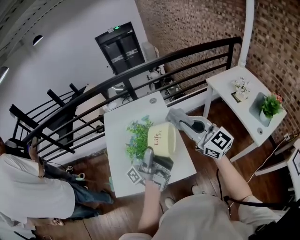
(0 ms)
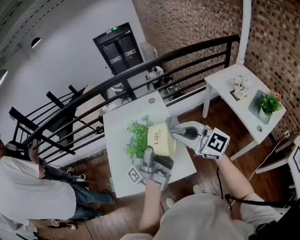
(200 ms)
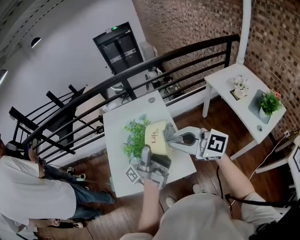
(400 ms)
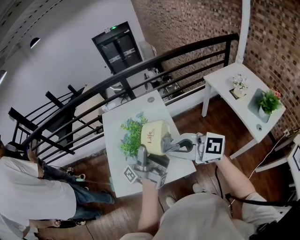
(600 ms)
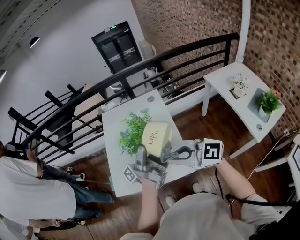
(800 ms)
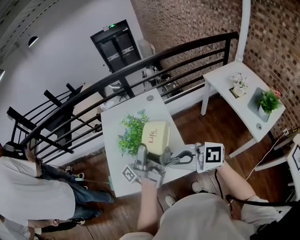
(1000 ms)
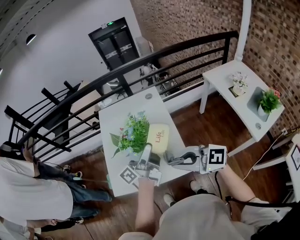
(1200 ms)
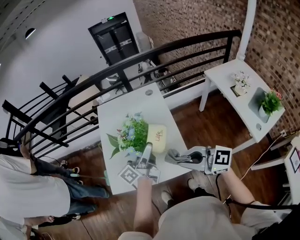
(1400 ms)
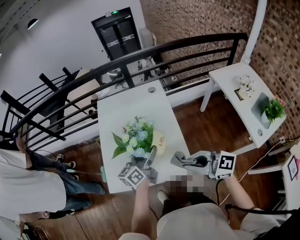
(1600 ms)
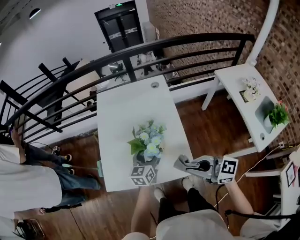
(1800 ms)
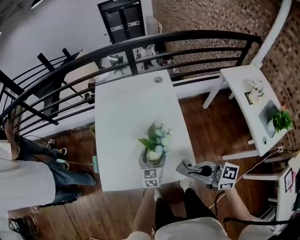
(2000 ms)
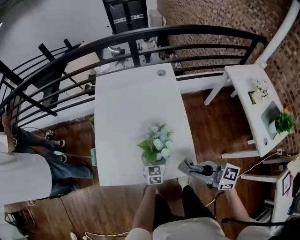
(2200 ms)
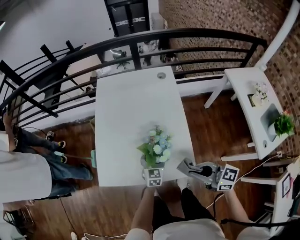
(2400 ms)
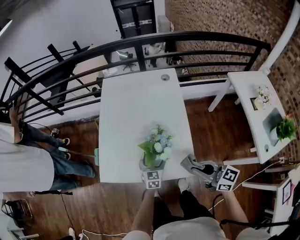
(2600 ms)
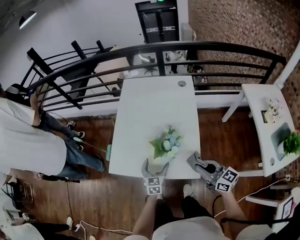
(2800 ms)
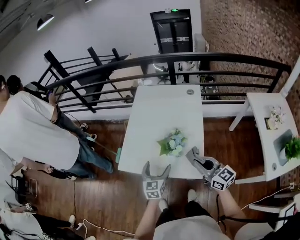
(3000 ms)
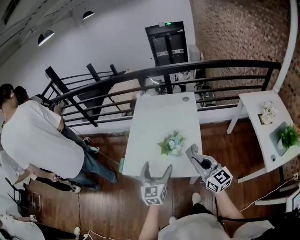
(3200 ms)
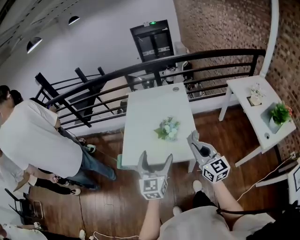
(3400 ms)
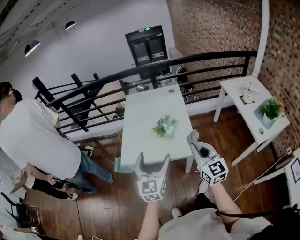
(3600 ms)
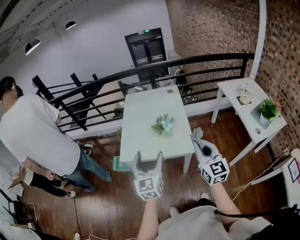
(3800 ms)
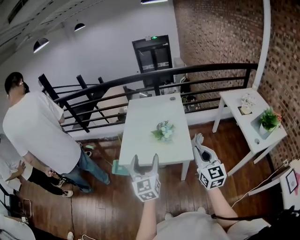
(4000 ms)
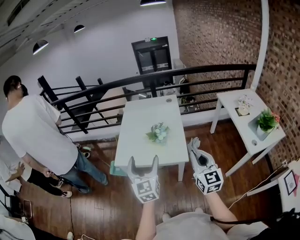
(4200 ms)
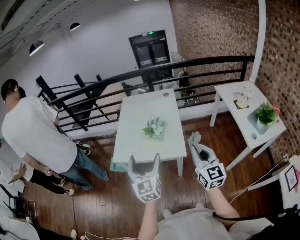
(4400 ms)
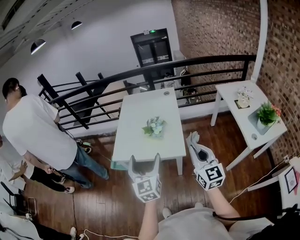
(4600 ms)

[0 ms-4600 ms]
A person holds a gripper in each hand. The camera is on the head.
0 ms to 1600 ms: The right gripper travels downward, backward and to the left by roughly 20 cm, and changes its angle by about 40 degrees. The left gripper travels downward and forward by approximately 15 cm, and tips its fingers downward by some 40 degrees.
1600 ms to 3000 ms: The left gripper goes approximately 15 cm backward, downward and to the left, and swivels about 50 degrees. The right gripper travels downward by about 5 cm.
3000 ms to 4600 ms: The left gripper heads upward and backward, covering some 30 cm, while the right gripper goes approximately 20 cm backward and upward, and rotates about 40 degrees.

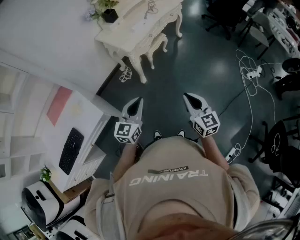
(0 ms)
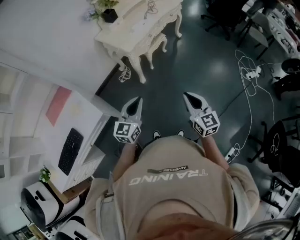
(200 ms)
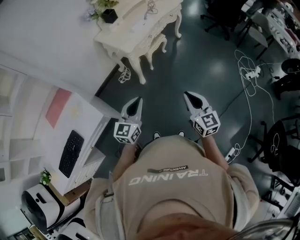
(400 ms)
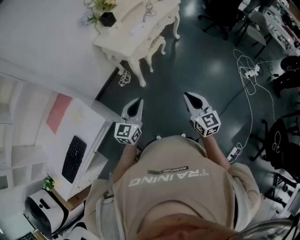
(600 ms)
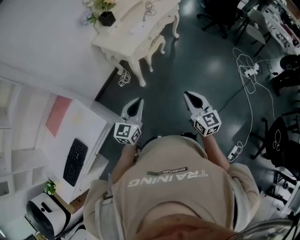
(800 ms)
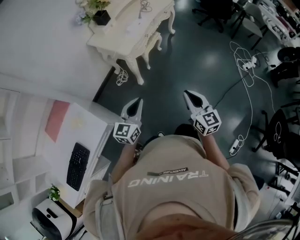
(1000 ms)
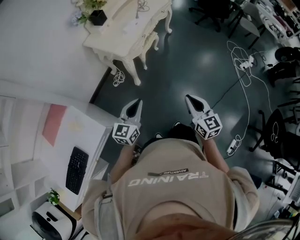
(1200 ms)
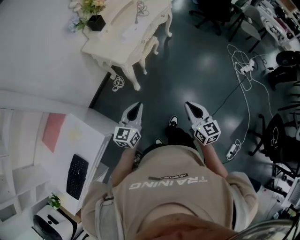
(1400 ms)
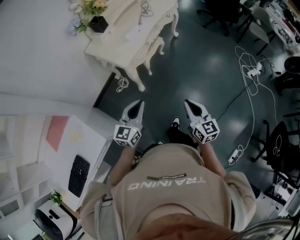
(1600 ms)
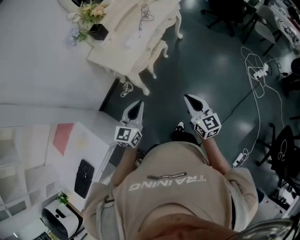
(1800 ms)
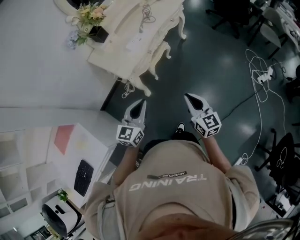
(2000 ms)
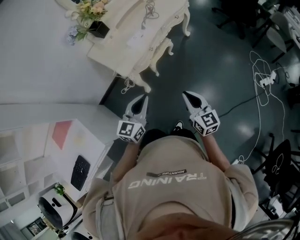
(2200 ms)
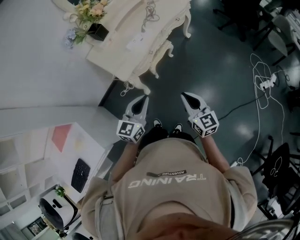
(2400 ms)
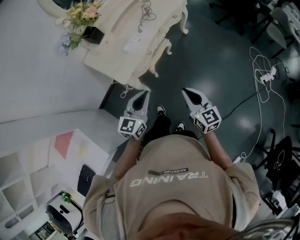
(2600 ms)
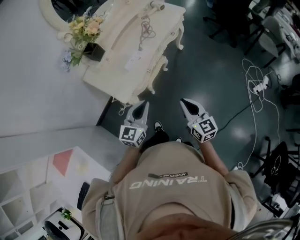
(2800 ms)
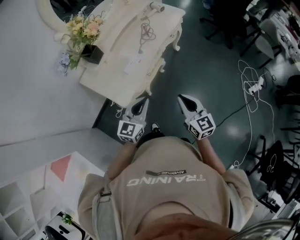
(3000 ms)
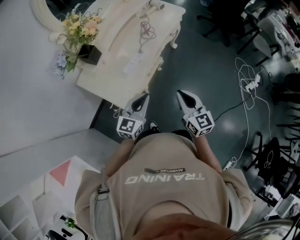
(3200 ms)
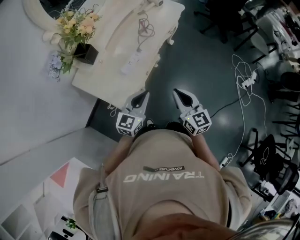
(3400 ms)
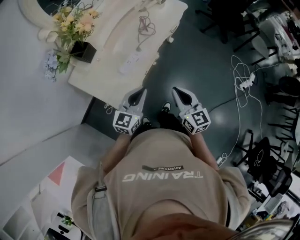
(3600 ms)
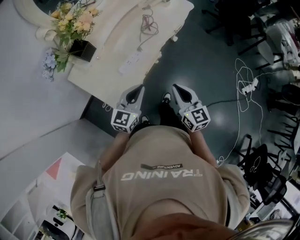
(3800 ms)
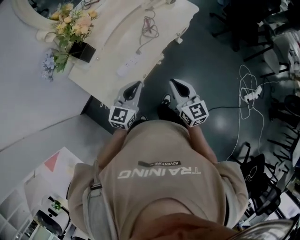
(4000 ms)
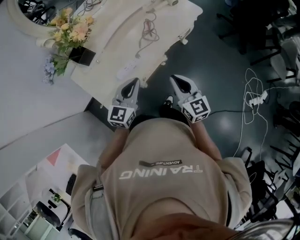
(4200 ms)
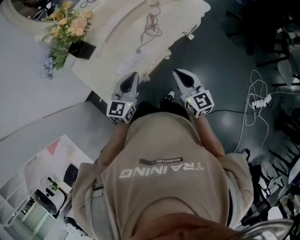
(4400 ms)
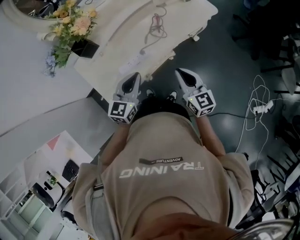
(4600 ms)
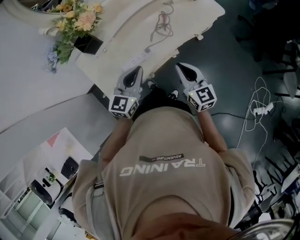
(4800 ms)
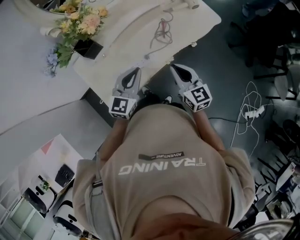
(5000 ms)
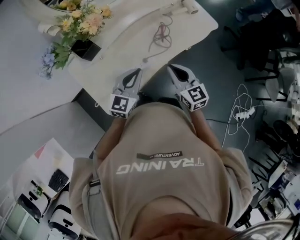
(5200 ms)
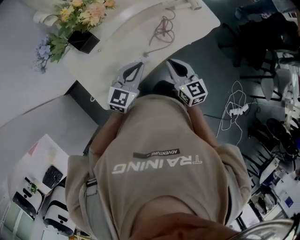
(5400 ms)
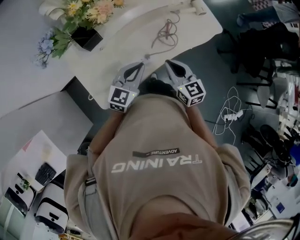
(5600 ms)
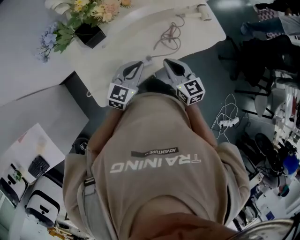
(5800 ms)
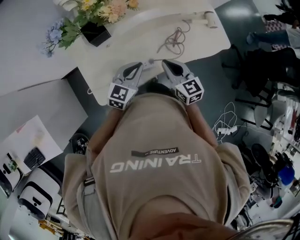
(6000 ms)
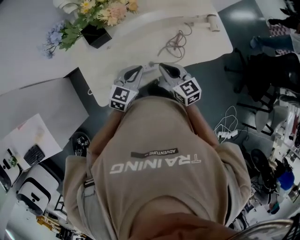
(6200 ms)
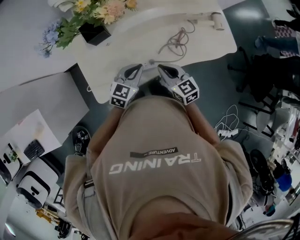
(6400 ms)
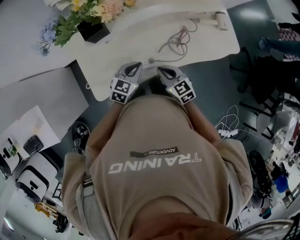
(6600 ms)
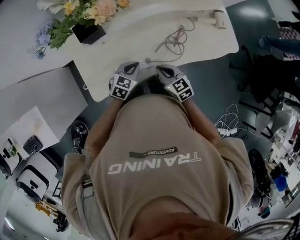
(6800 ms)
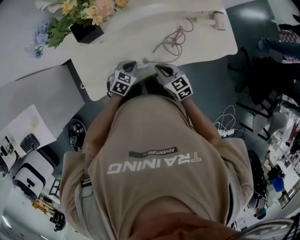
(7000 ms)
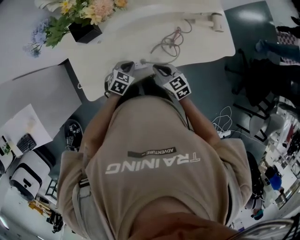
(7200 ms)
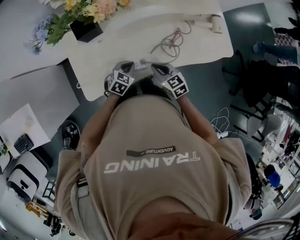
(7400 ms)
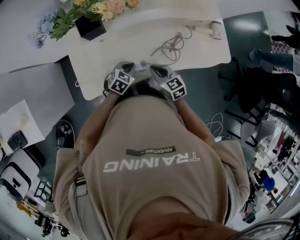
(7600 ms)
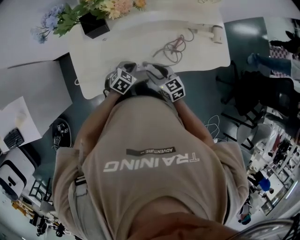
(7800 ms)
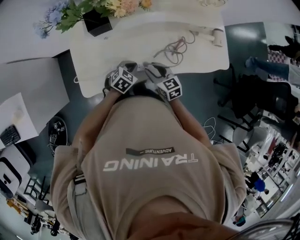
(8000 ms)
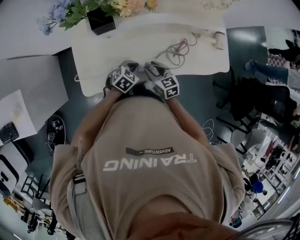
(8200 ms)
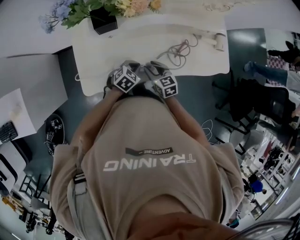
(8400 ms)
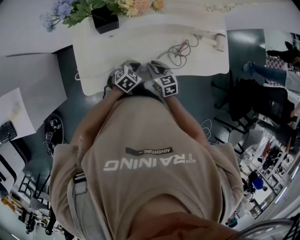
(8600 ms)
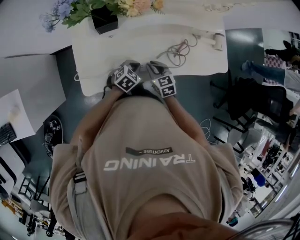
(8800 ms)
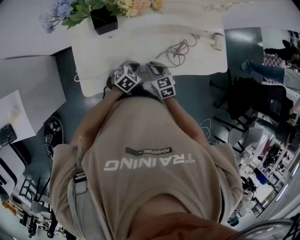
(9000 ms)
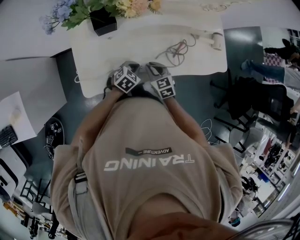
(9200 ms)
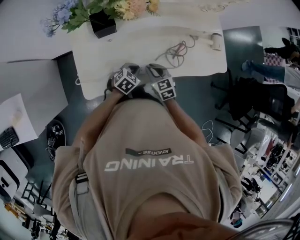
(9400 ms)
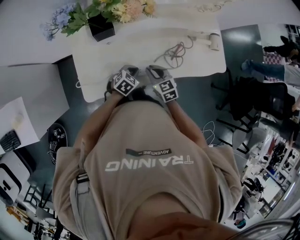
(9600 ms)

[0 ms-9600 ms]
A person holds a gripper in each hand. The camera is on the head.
0 ms to 1600 ms: Both grippers move forward, approximately 20 cm.
1600 ms to 3200 ms: Both grippers move forward, approximately 40 cm.
3200 ms to 4800 ms: The right gripper moves about 30 cm, and changes its angle by about 20 degrees. Meanwhile the left gripper changes place by about 25 cm, and changes its angle by some 20 degrees.
4800 ms to 6400 ms: The right gripper shifts some 20 cm forward, to the left and downward, and changes its angle by approximately 30 degrees. The left gripper travels downward and forward by some 15 cm.
6400 ms to 8000 ms: The two grippers go approximately 10 cm downward. The right gripper opens; the left gripper changes its angle by roughly 20 degrees.
8000 ms to 9600 ms: The right gripper closes.

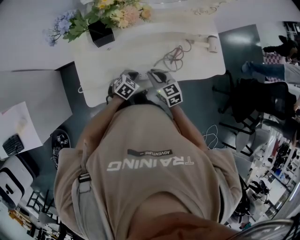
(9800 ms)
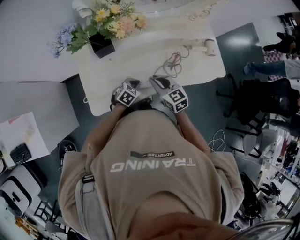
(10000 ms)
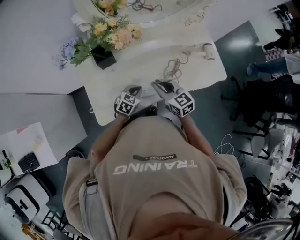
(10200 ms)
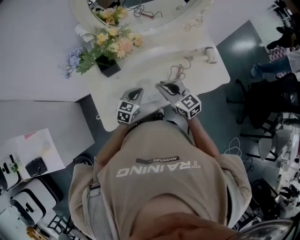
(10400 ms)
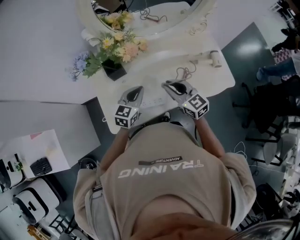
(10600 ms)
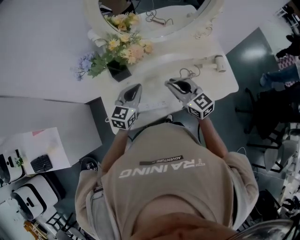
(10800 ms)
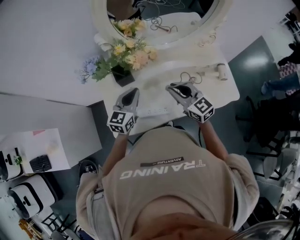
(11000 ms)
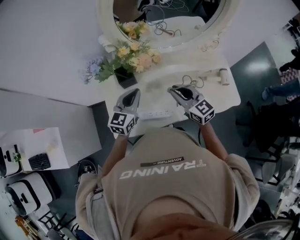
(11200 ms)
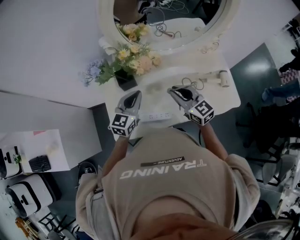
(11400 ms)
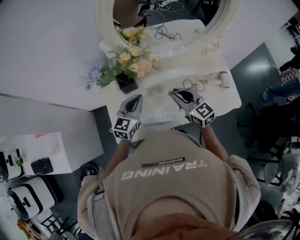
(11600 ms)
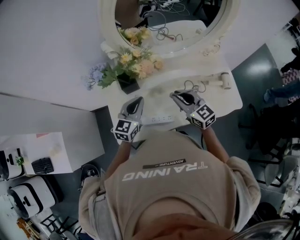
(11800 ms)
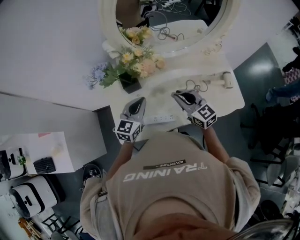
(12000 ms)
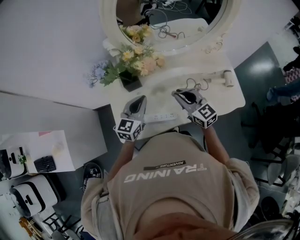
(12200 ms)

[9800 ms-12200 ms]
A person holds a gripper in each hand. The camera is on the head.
9800 ms to 11000 ms: Both grippers travel together upward, roughly 20 cm. The left gripper tilts its fingers approximately 40 degrees upward; the right gripper rotates roughly 20 degrees.
11000 ms to 12200 ms: There are only small adjustments of the grippers.

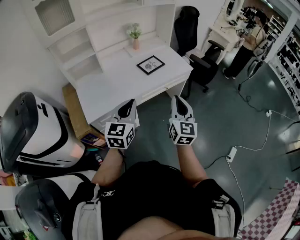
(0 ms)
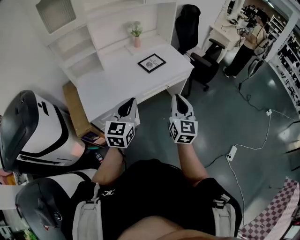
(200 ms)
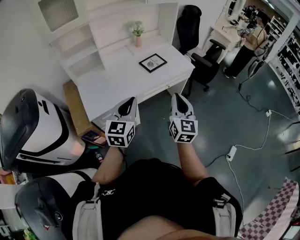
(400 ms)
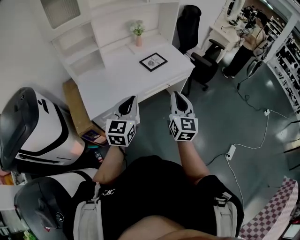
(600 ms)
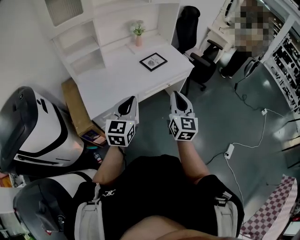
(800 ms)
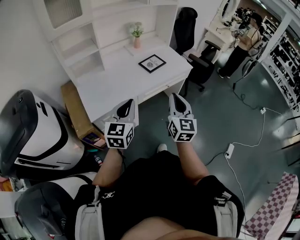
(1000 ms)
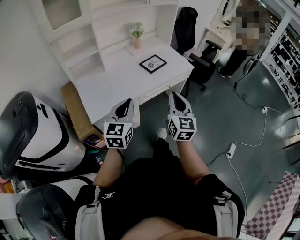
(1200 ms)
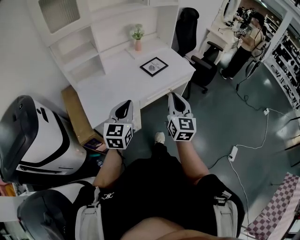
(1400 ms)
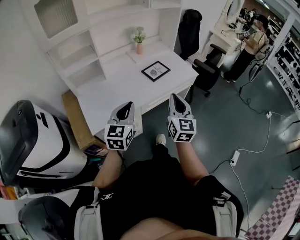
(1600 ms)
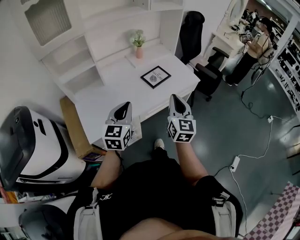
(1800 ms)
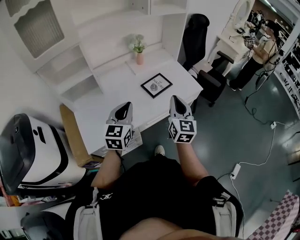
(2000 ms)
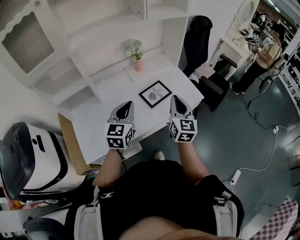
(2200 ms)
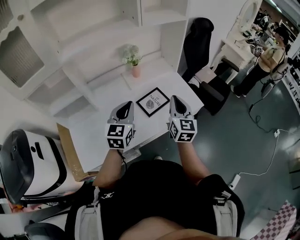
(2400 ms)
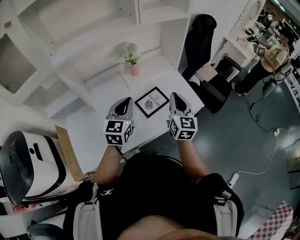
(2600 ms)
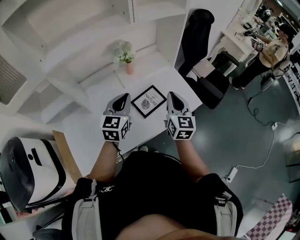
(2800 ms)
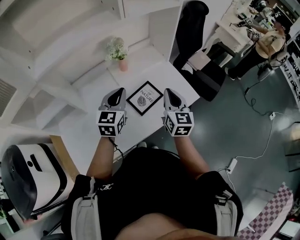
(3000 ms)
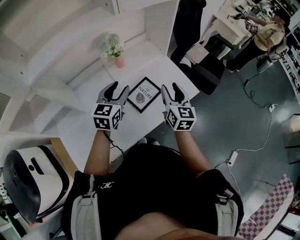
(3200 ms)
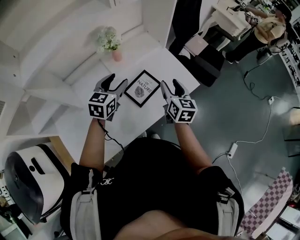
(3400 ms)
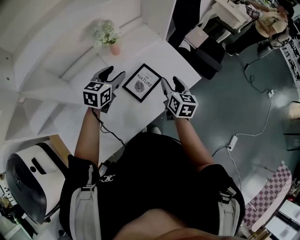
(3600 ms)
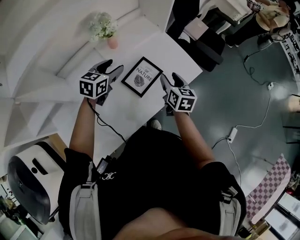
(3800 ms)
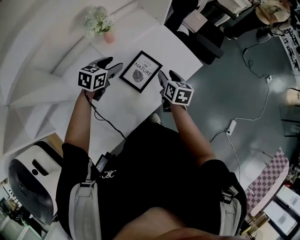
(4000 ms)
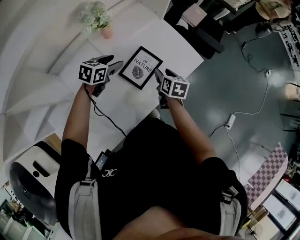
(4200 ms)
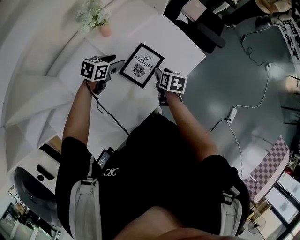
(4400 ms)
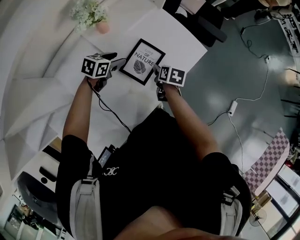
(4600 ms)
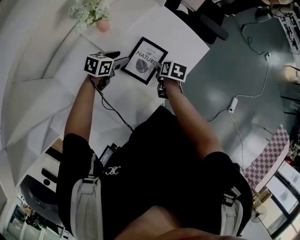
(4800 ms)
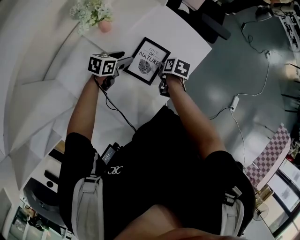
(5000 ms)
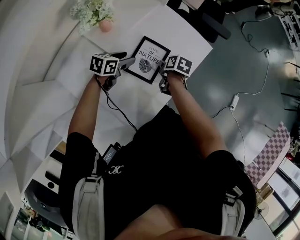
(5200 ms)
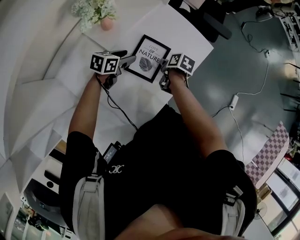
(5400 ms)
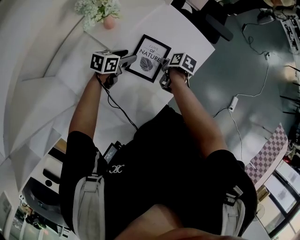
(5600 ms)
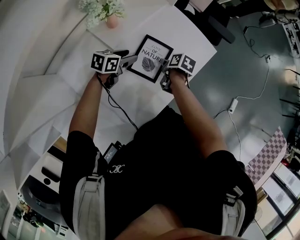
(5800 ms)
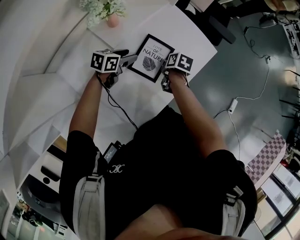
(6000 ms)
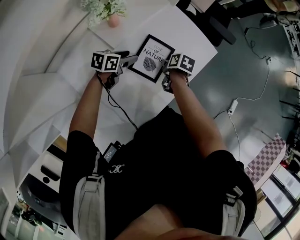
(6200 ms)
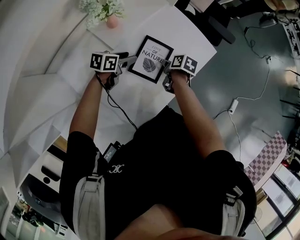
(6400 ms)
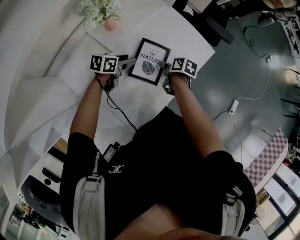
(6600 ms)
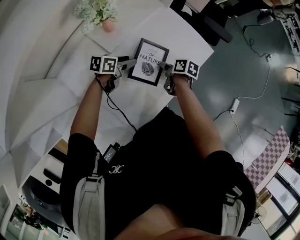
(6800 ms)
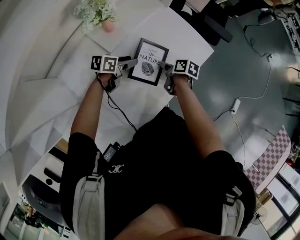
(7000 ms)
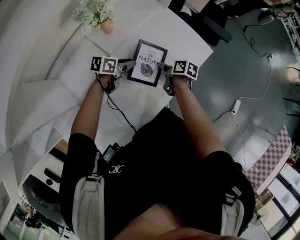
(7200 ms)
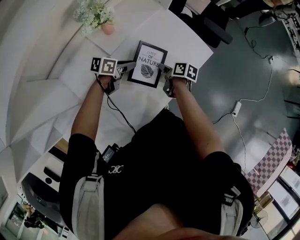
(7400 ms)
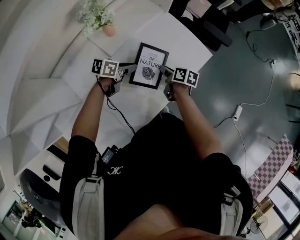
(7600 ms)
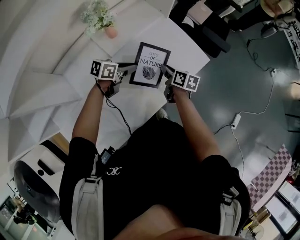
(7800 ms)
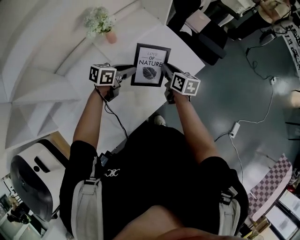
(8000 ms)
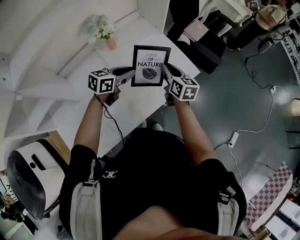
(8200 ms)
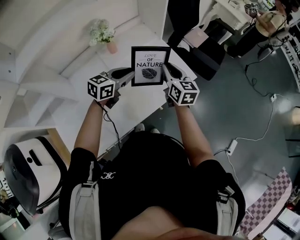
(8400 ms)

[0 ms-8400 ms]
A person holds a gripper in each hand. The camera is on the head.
0 ms to 1400 ms: Both grippers move to the left, about 10 cm.
1400 ms to 2800 ms: Both grippers are carried forward, some 40 cm.
2800 ms to 4200 ms: The left gripper shifts about 25 cm downward and forward, changes its angle by some 50 degrees, and opens its fingers, while the right gripper moves downward, about 25 cm, tips its fingers downward by some 40 degrees, and opens its fingers.
4200 ms to 5600 ms: The two grippers go approximately 10 cm downward. The right gripper swivels about 40 degrees, and closes up.
5600 ms to 7000 ms: The grippers stay close to where they were, moving slightly.
7000 ms to 8400 ms: The right gripper is displaced upward by about 25 cm, and points its fingers about 30 degrees further upward; the left gripper moves upward and to the right, about 25 cm, turns by about 40 degrees, and closes its fingers.
